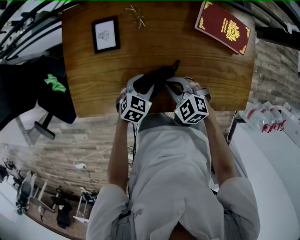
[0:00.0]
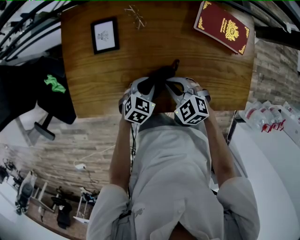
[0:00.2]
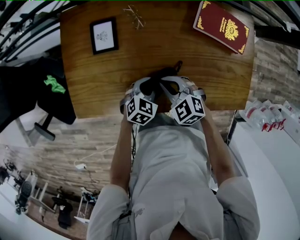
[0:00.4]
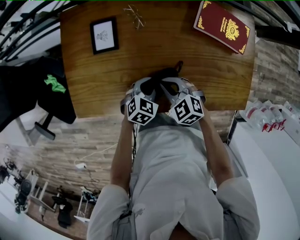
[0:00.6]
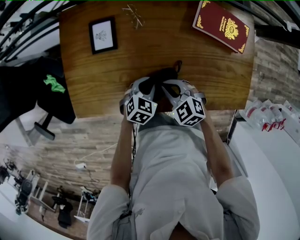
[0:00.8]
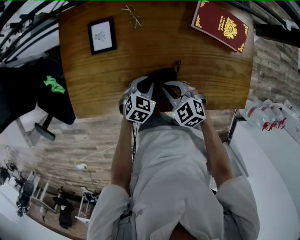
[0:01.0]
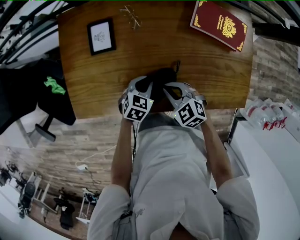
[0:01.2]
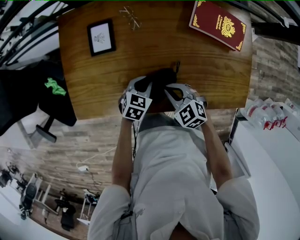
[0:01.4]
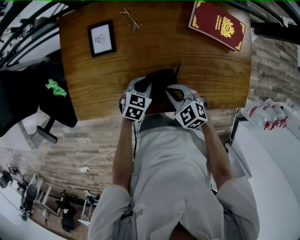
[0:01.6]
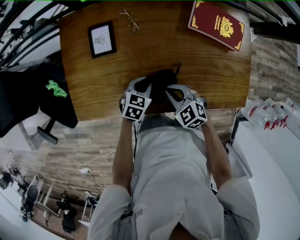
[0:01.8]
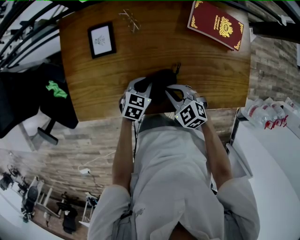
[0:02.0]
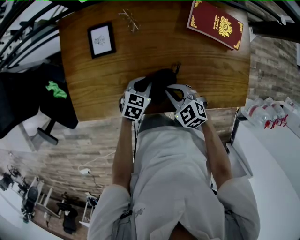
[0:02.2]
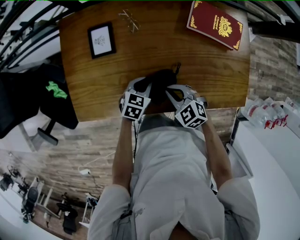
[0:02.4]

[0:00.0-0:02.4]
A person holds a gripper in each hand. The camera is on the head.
0:00.0 to 0:02.4: There are only small adjustments of the grippers.

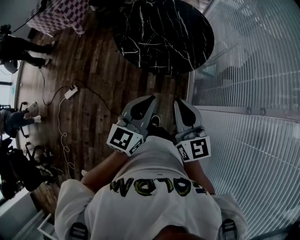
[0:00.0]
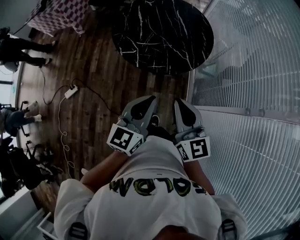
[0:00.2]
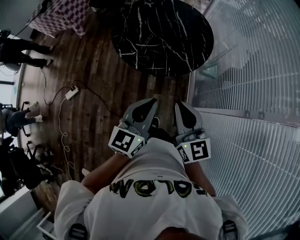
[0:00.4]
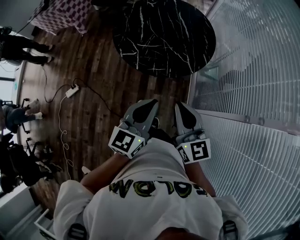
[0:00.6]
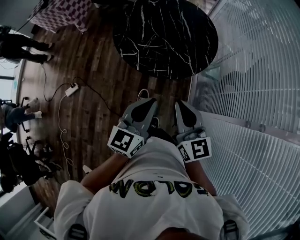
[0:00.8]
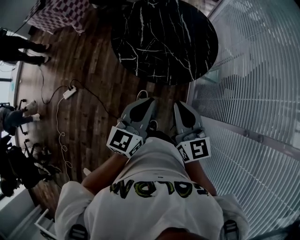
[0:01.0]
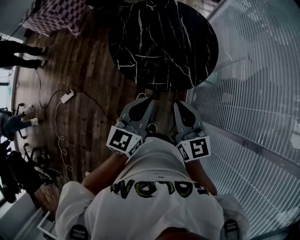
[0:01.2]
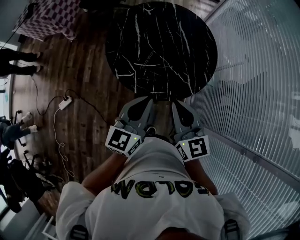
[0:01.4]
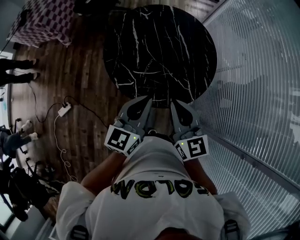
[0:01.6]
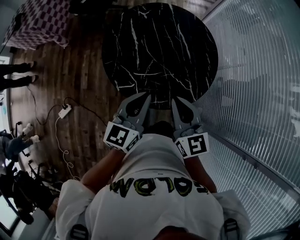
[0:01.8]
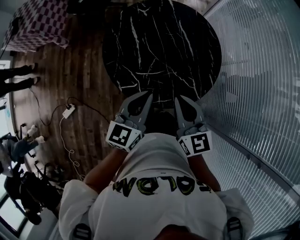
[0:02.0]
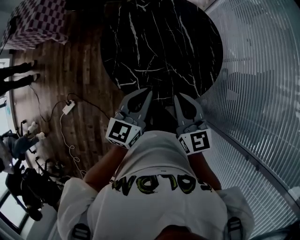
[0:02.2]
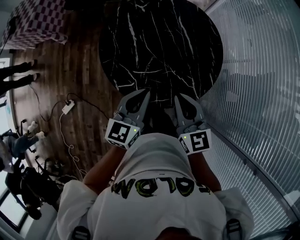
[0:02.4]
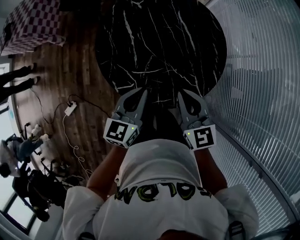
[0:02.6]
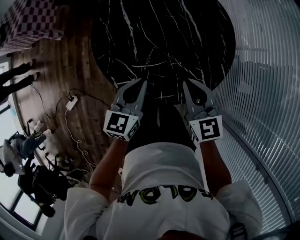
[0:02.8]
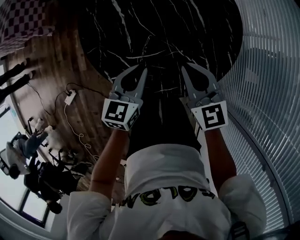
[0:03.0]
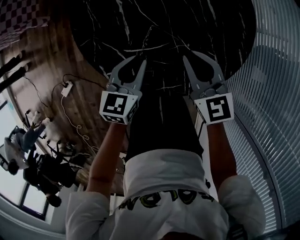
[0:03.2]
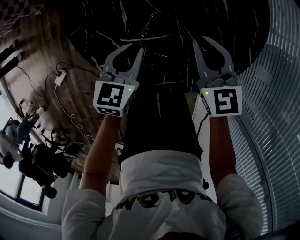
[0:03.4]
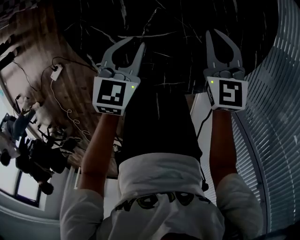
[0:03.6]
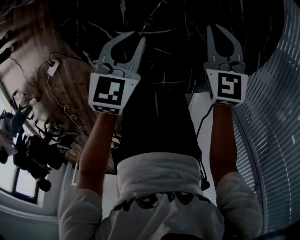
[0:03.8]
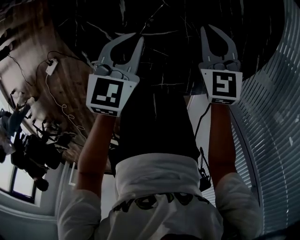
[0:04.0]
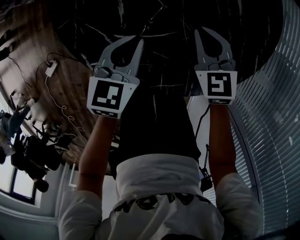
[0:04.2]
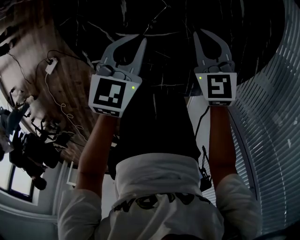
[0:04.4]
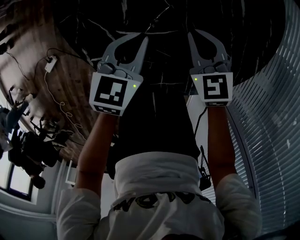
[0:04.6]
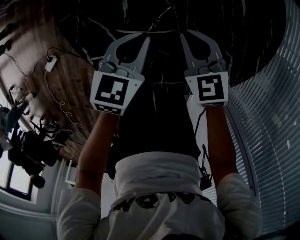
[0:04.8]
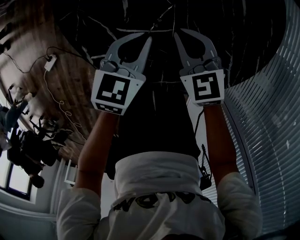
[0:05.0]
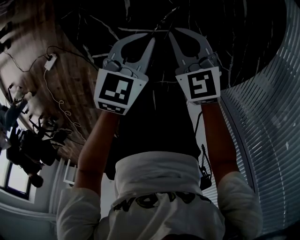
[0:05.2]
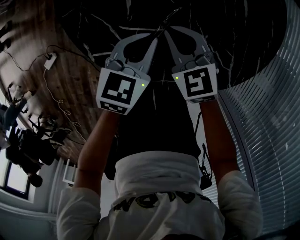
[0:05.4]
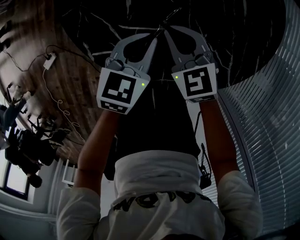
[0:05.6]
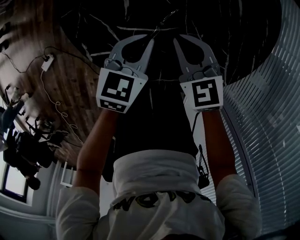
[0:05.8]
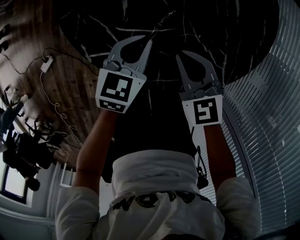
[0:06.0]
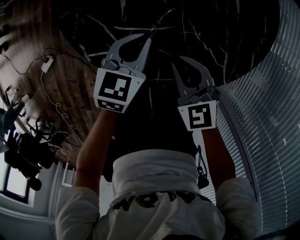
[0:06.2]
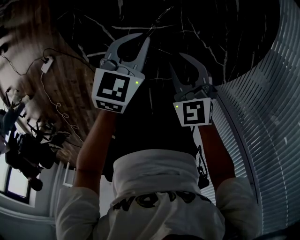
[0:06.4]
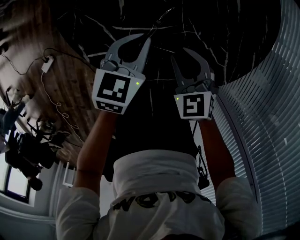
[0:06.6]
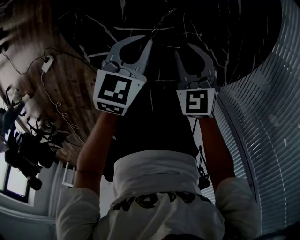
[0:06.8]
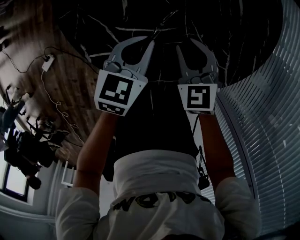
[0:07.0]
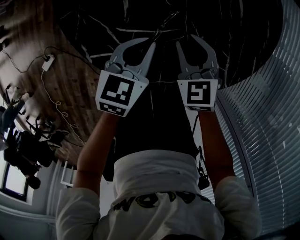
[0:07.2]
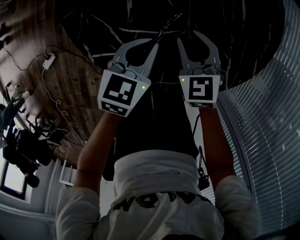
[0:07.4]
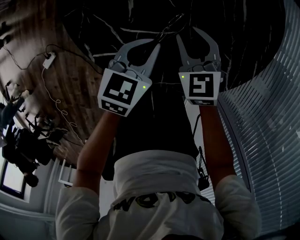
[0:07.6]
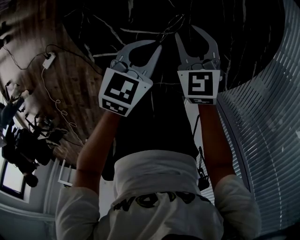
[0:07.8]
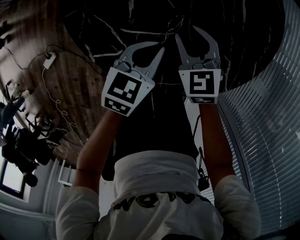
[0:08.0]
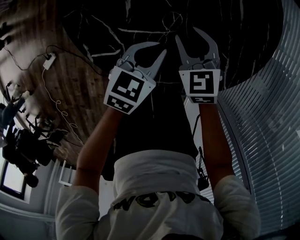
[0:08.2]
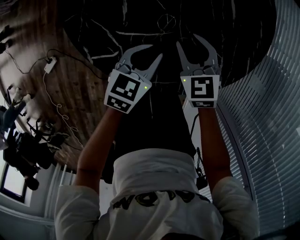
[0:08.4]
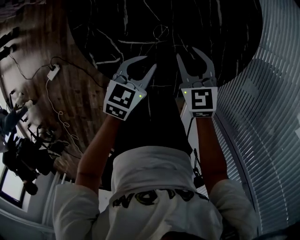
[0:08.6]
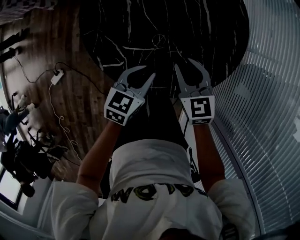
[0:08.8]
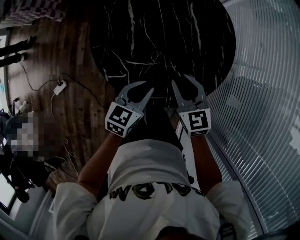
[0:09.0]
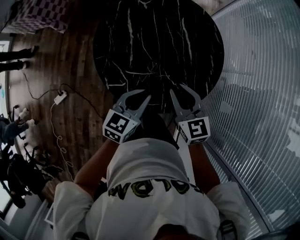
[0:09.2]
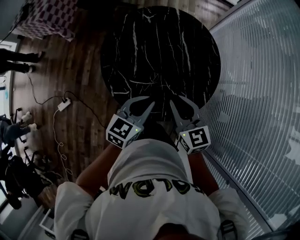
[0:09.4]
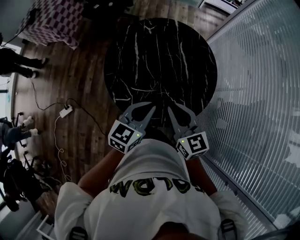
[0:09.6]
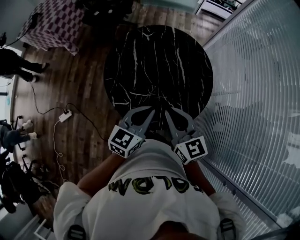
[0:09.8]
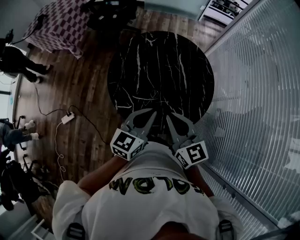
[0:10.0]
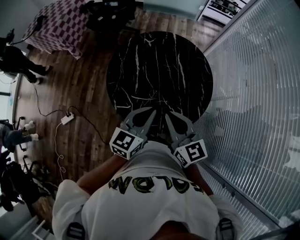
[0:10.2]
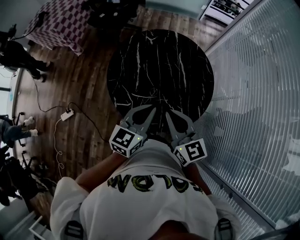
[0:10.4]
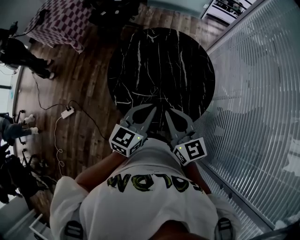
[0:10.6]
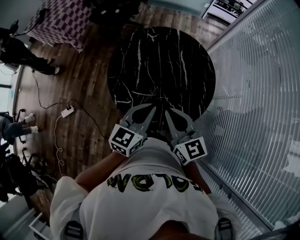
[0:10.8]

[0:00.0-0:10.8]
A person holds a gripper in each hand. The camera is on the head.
0:00.0 to 0:01.6: The grippers both shift forward by roughly 25 cm.
0:01.6 to 0:03.0: Both grippers travel together downward and forward, some 25 cm. The left gripper turns by approximately 20 degrees.
0:03.0 to 0:04.6: The two grippers go some 15 cm downward.
0:04.6 to 0:06.2: The right gripper shifts roughly 10 cm backward.
0:06.2 to 0:07.8: The right gripper travels forward by some 10 cm.
0:07.8 to 0:09.2: Both grippers move upward, some 25 cm. The right gripper turns by roughly 20 degrees.
0:09.2 to 0:10.8: Both grippers travel together upward, some 15 cm.

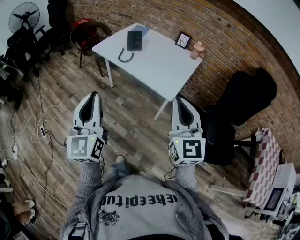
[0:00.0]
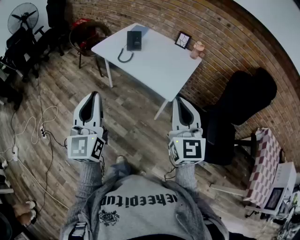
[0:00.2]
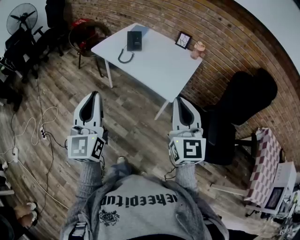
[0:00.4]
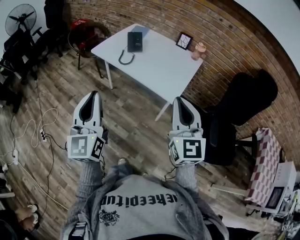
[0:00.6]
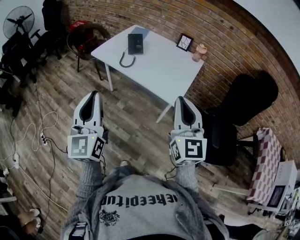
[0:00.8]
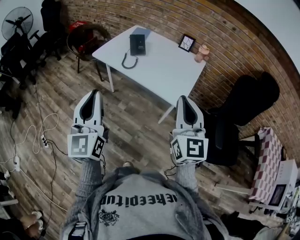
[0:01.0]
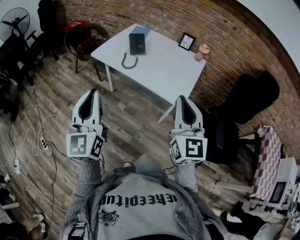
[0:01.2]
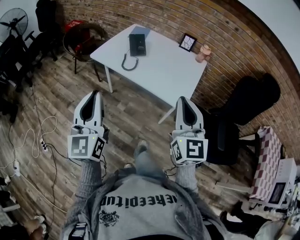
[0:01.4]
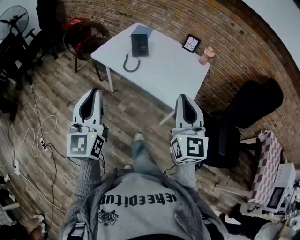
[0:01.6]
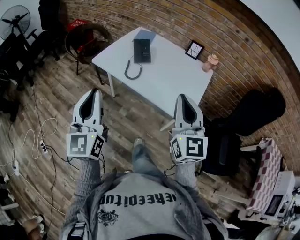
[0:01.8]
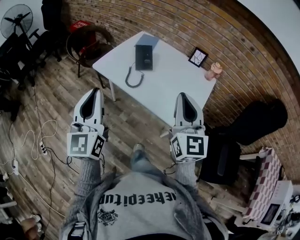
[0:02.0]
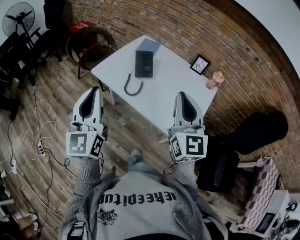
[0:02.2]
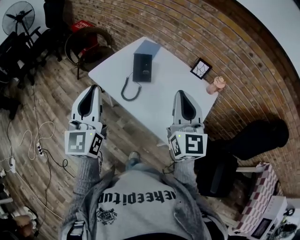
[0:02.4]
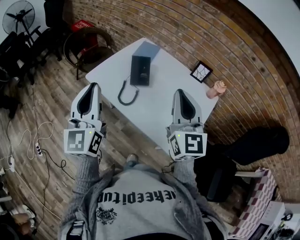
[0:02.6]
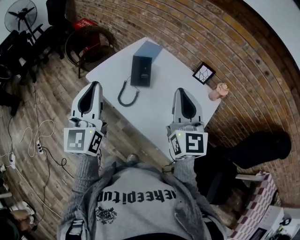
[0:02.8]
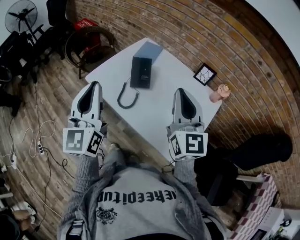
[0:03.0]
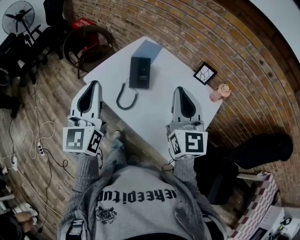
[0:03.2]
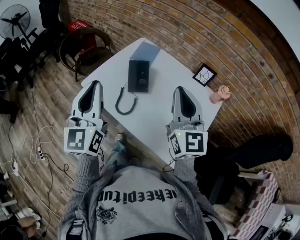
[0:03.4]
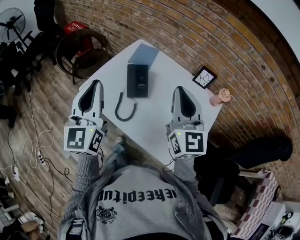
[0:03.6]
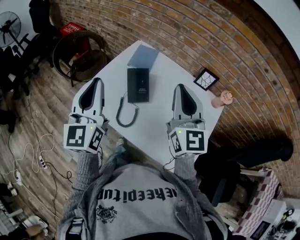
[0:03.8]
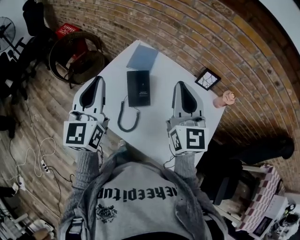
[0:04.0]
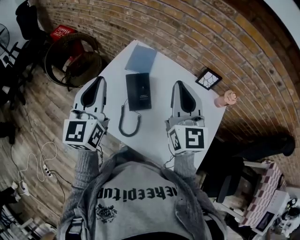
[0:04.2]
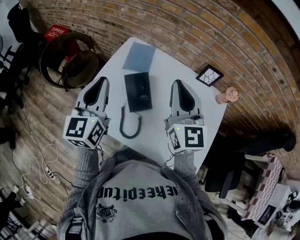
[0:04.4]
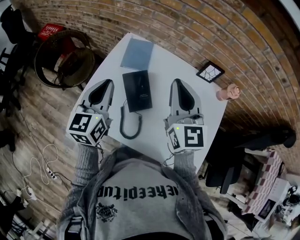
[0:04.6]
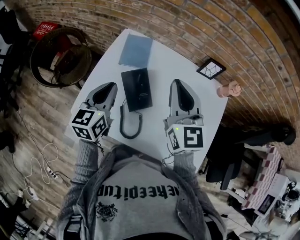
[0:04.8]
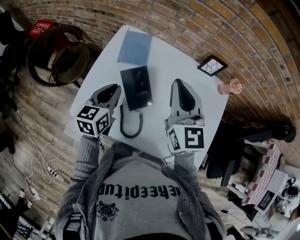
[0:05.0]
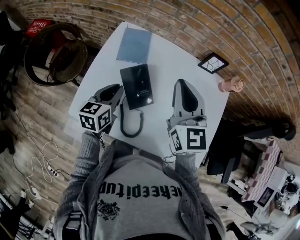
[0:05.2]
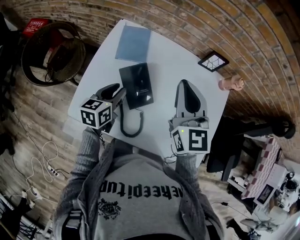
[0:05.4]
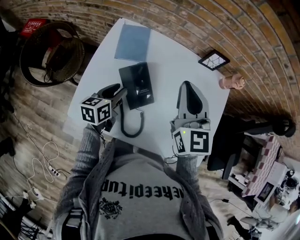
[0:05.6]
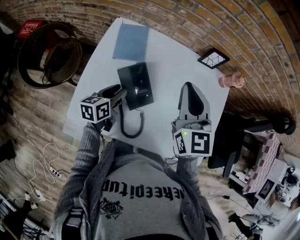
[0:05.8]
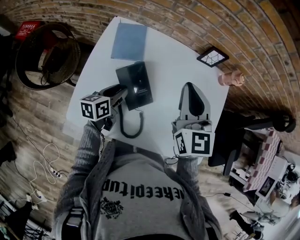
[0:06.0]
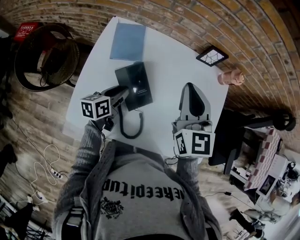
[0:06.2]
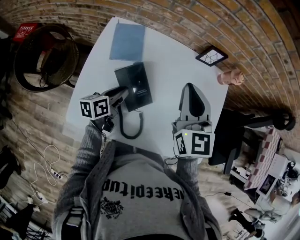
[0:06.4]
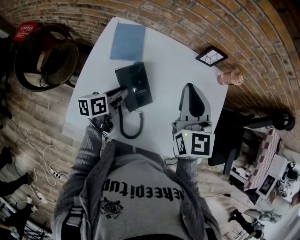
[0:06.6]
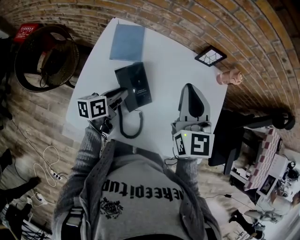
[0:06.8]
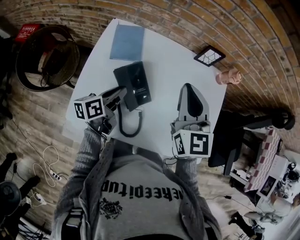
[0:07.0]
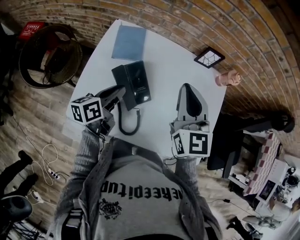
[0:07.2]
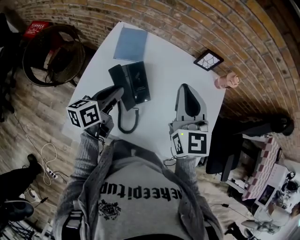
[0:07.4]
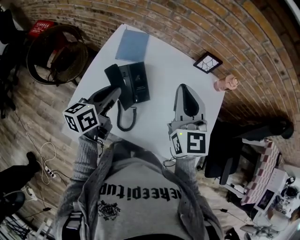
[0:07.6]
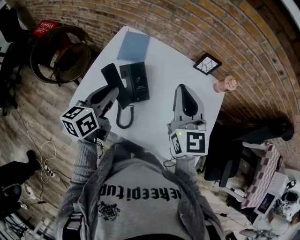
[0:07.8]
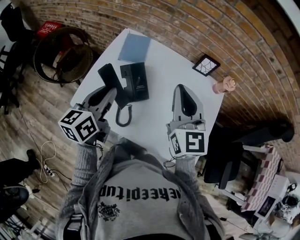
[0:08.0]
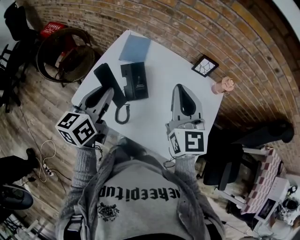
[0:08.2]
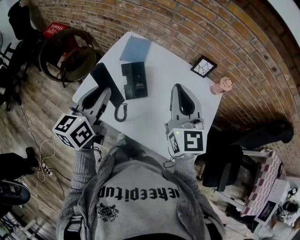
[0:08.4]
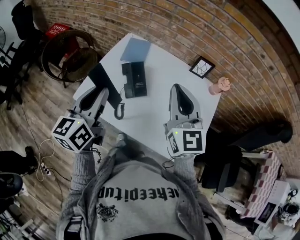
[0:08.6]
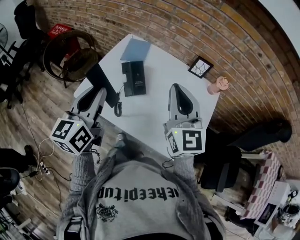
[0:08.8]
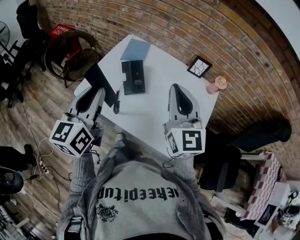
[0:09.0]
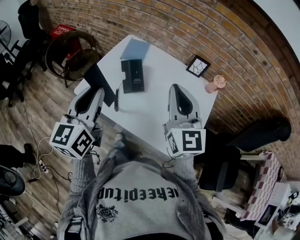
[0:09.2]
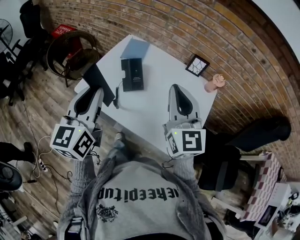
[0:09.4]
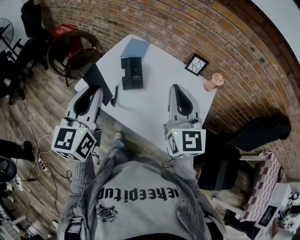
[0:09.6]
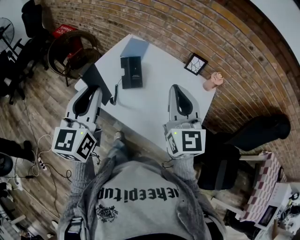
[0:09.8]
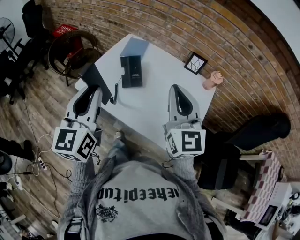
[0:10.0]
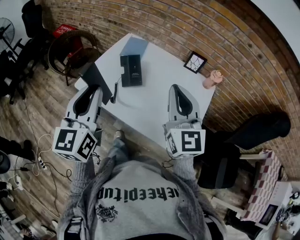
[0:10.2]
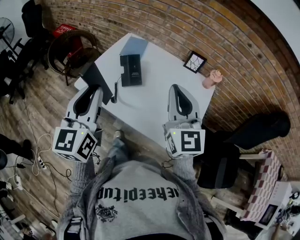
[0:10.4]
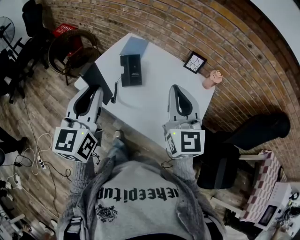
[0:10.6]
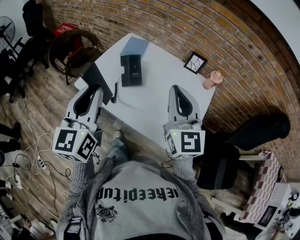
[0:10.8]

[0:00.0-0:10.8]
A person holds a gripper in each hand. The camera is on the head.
0:00.0 to 0:01.6: The two grippers go some 20 cm forward and to the left.
0:01.6 to 0:03.0: The grippers both shift forward by roughly 30 cm.
0:03.0 to 0:04.6: The right gripper goes some 25 cm forward; the left gripper goes some 35 cm forward and downward, and turns by some 30 degrees.
0:04.6 to 0:06.2: The right gripper shifts approximately 5 cm downward. Meanwhile the left gripper moves downward, roughly 20 cm, turns by roughly 50 degrees, and opens.
0:06.2 to 0:07.8: The left gripper heads upward and backward, covering some 20 cm, and rotates approximately 20 degrees. The right gripper heads backward, covering about 5 cm.
0:07.8 to 0:09.2: The left gripper moves backward and upward, roughly 20 cm, and rotates about 30 degrees. Meanwhile the right gripper heads backward and upward, covering approximately 15 cm.
0:09.2 to 0:10.8: The grippers both shift backward by roughly 5 cm.
